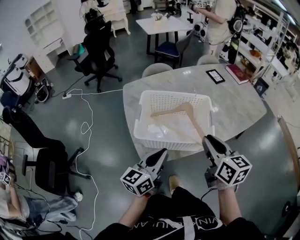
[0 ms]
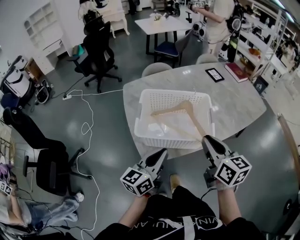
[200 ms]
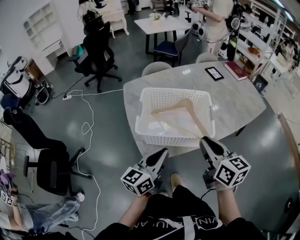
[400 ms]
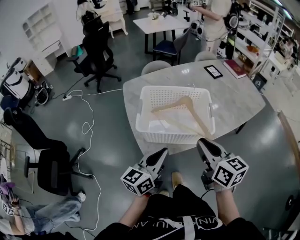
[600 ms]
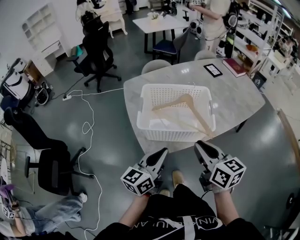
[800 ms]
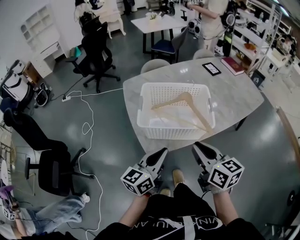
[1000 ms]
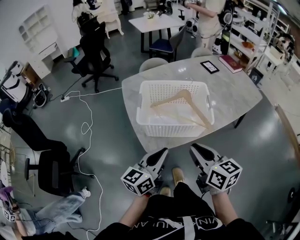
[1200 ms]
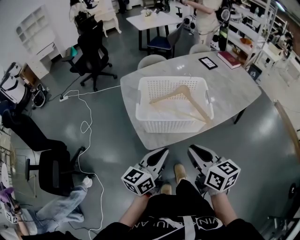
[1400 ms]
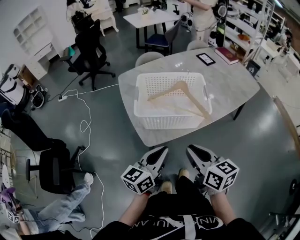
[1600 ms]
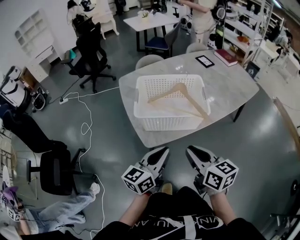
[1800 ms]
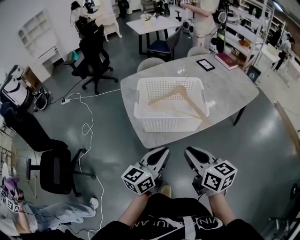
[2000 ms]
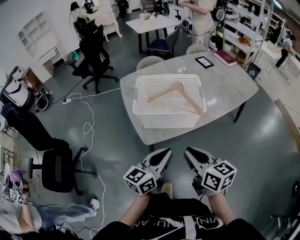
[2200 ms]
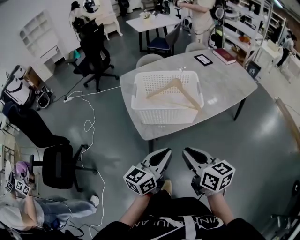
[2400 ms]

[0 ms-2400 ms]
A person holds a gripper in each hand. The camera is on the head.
0 ms to 1200 ms: The left gripper heads backward, covering approximately 5 cm. Meanwhile the right gripper goes roughly 10 cm backward and to the left.
1200 ms to 2400 ms: The right gripper moves backward, some 10 cm; the left gripper goes approximately 10 cm backward and to the right.

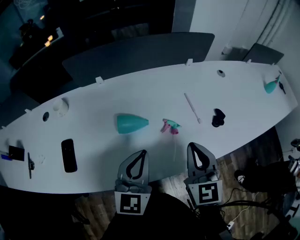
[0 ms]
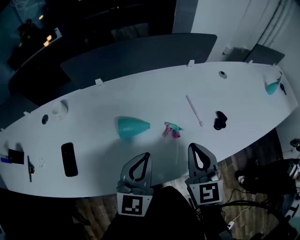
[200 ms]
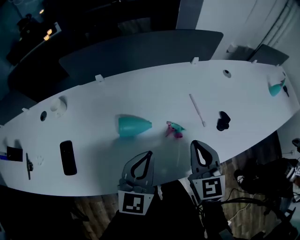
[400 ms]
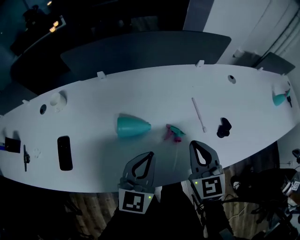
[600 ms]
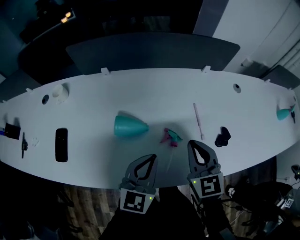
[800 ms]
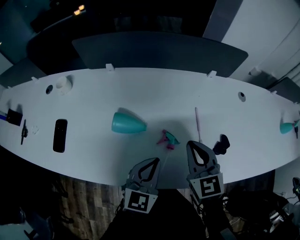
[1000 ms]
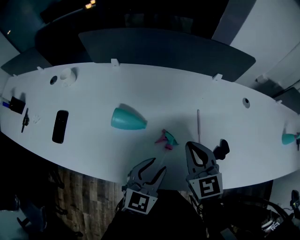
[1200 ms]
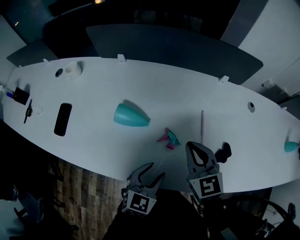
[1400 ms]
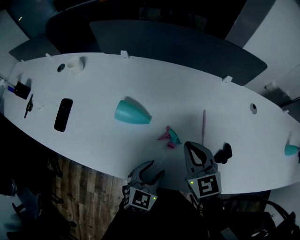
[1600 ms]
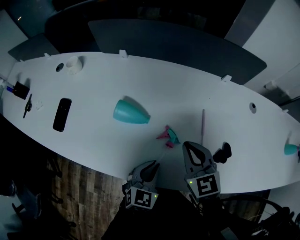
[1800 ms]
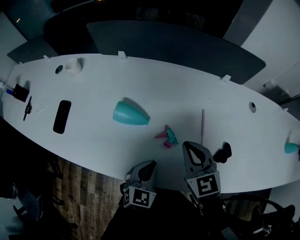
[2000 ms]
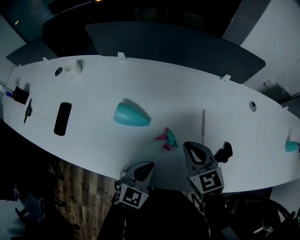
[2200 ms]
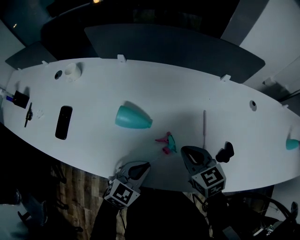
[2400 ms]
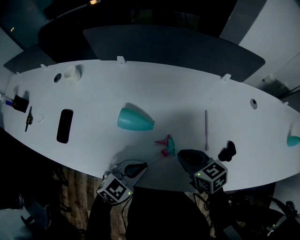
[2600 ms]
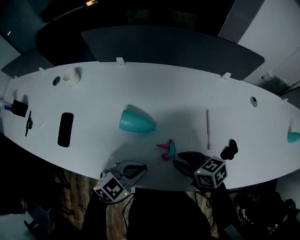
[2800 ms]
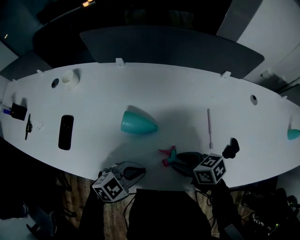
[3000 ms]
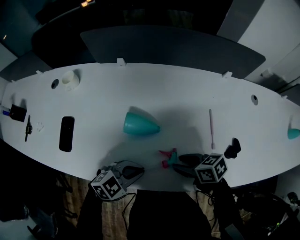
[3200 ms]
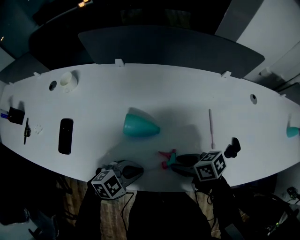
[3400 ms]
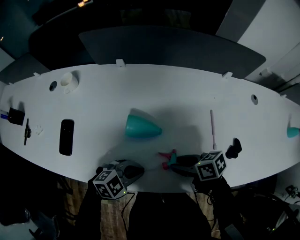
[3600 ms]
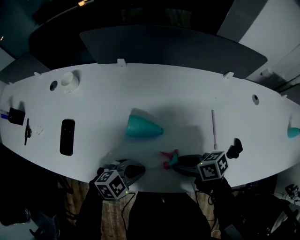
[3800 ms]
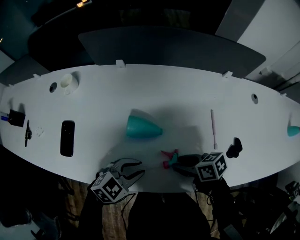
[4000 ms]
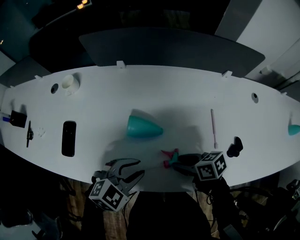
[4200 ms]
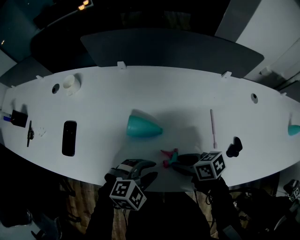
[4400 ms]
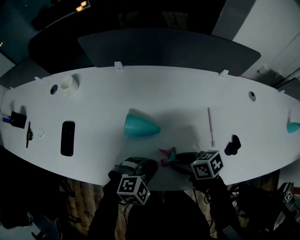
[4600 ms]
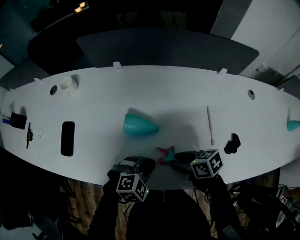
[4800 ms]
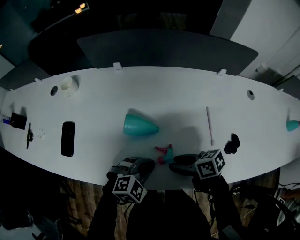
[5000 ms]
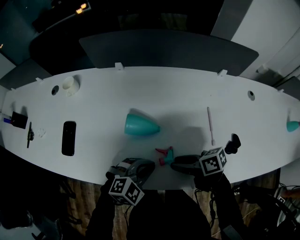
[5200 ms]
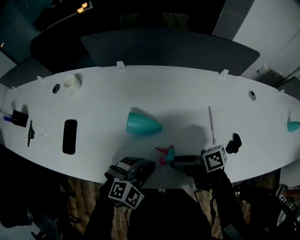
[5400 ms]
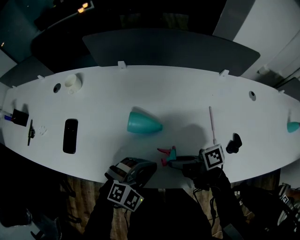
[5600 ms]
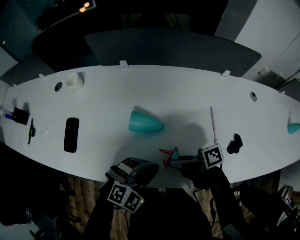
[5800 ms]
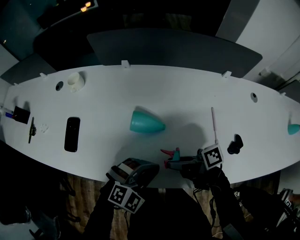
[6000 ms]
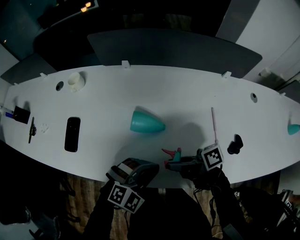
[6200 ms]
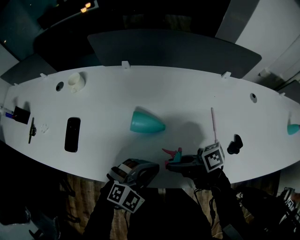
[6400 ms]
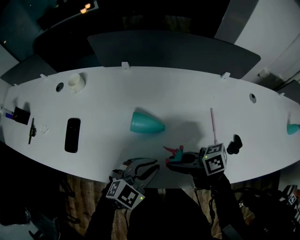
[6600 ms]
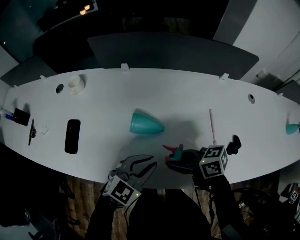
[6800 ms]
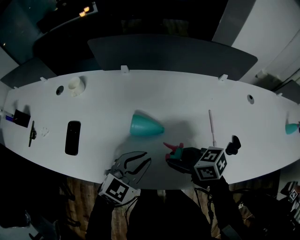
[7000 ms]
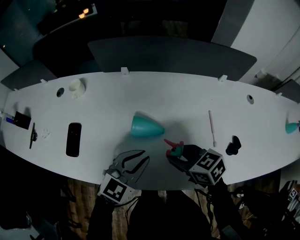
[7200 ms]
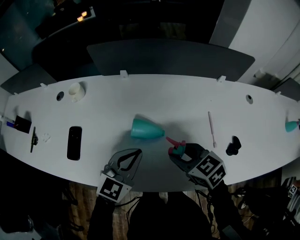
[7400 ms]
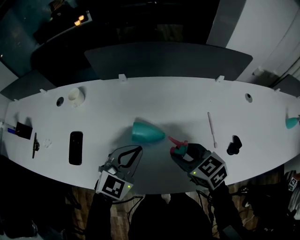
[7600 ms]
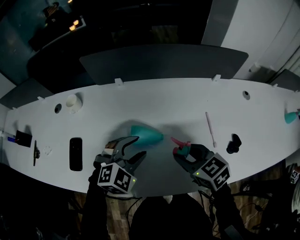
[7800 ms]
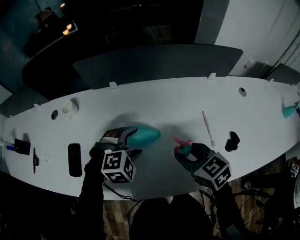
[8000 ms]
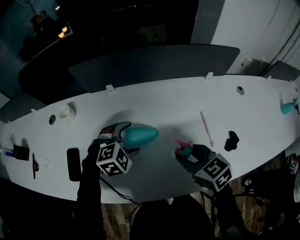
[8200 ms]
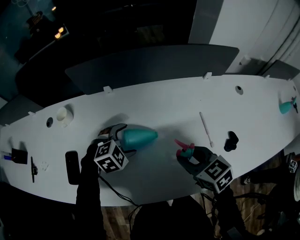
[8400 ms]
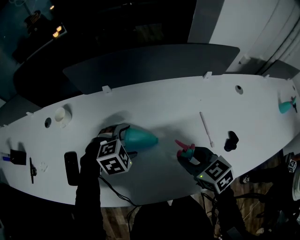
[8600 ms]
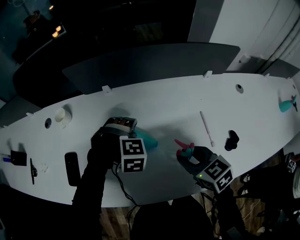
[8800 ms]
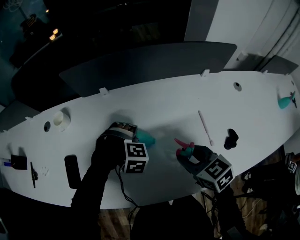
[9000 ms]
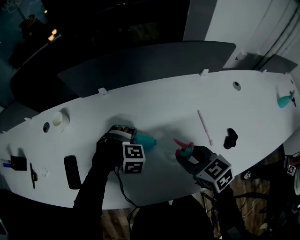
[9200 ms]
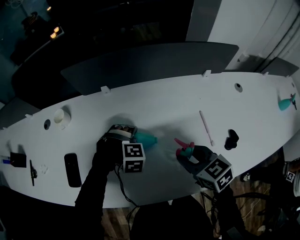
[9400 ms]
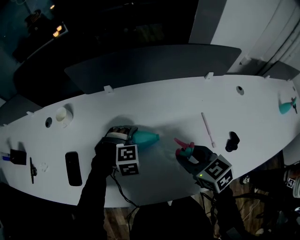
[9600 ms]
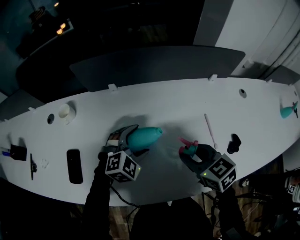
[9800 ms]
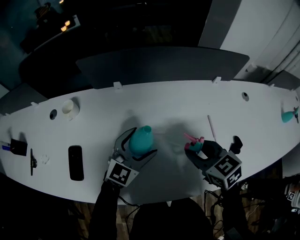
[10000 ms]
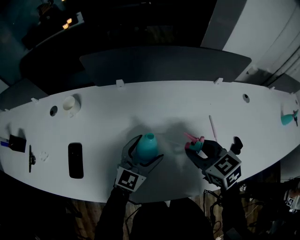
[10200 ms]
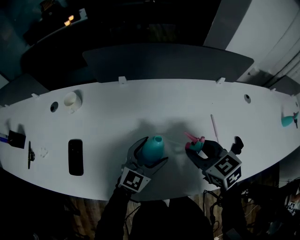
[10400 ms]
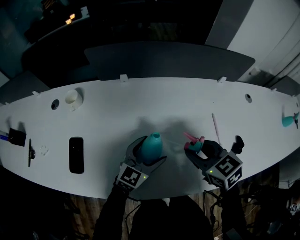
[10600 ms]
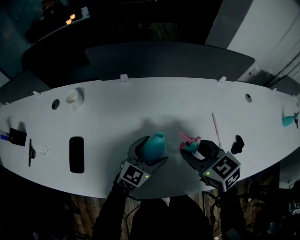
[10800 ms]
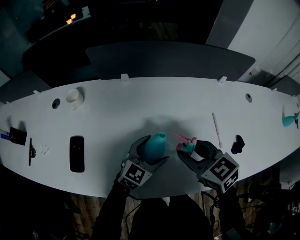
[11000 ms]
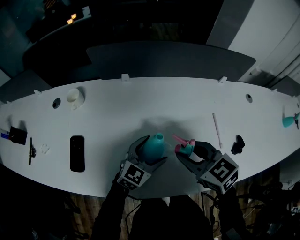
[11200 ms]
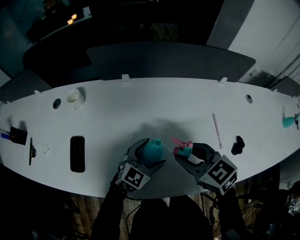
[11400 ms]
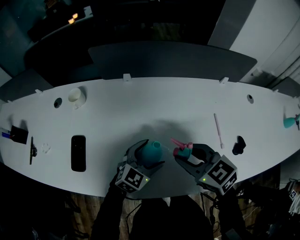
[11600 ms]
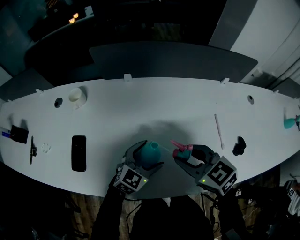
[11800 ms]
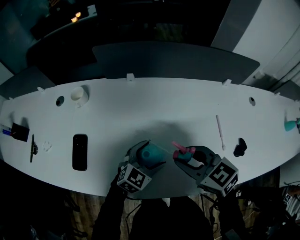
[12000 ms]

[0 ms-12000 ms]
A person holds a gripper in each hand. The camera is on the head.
0 ms to 1600 ms: The right gripper goes approximately 15 cm forward and downward, and changes its angle by approximately 40 degrees. The left gripper goes about 20 cm downward and to the right, swivels roughly 30 degrees, and opens.
1600 ms to 3000 ms: The left gripper changes place by some 10 cm, rotates some 40 degrees, and closes; the right gripper goes about 10 cm downward, swivels approximately 50 degrees, and opens its fingers.
4400 ms to 6000 ms: The right gripper goes roughly 5 cm upward, and angles its fingers upward, by approximately 30 degrees.
6000 ms to 7600 ms: The left gripper moves some 15 cm, and changes its angle by roughly 30 degrees. Meanwhile the right gripper ends up about 5 cm from where it was, and turns by about 70 degrees.
7600 ms to 9000 ms: The left gripper shifts about 15 cm downward, tips its fingers downward by some 50 degrees, and opens up.
9000 ms to 10400 ms: The left gripper heads upward, covering about 5 cm, and angles its fingers upward, by approximately 60 degrees.
10400 ms to 12000 ms: The right gripper moves to the left, some 5 cm. The left gripper moves approximately 5 cm.

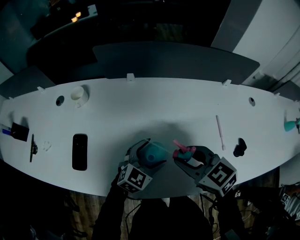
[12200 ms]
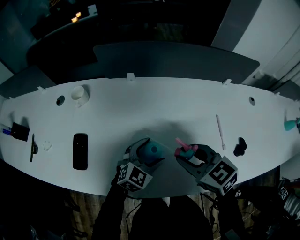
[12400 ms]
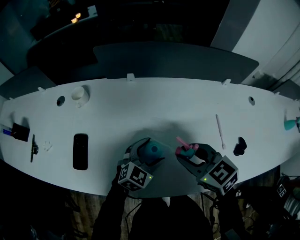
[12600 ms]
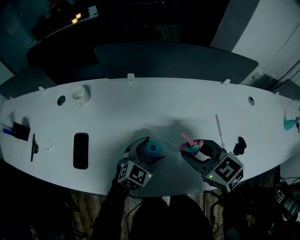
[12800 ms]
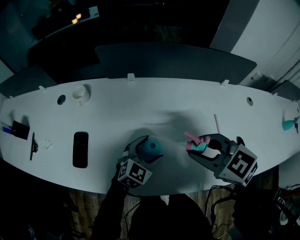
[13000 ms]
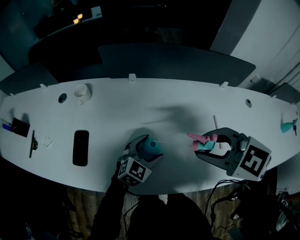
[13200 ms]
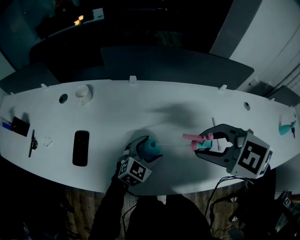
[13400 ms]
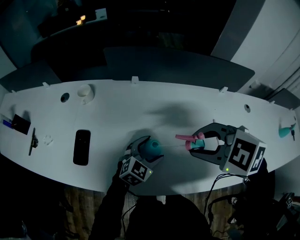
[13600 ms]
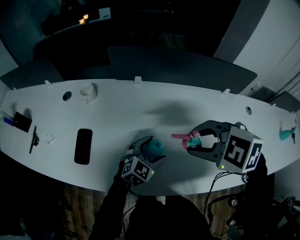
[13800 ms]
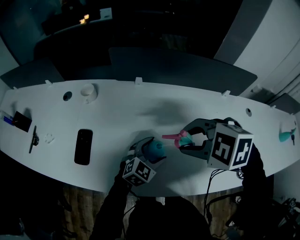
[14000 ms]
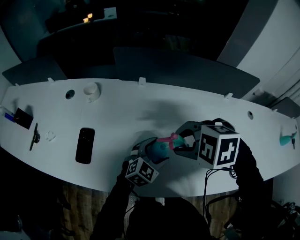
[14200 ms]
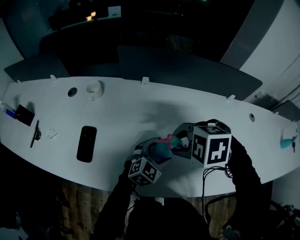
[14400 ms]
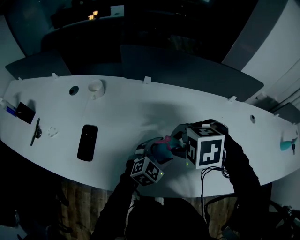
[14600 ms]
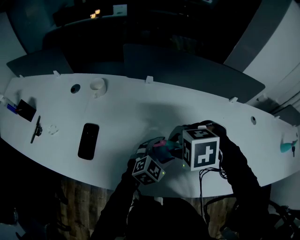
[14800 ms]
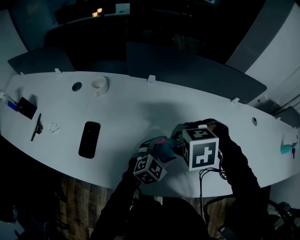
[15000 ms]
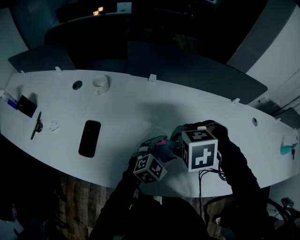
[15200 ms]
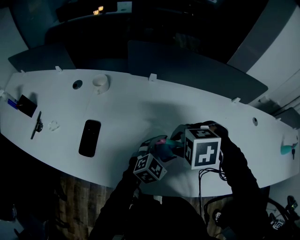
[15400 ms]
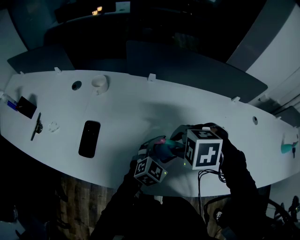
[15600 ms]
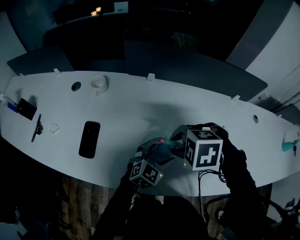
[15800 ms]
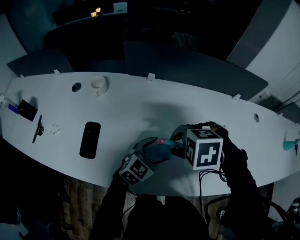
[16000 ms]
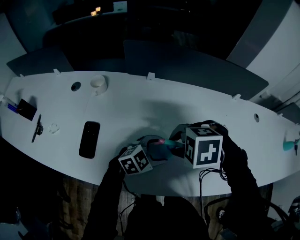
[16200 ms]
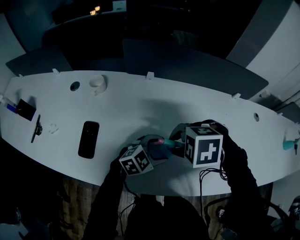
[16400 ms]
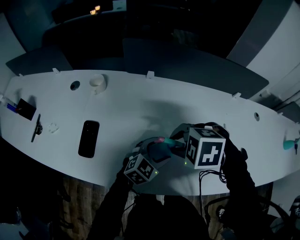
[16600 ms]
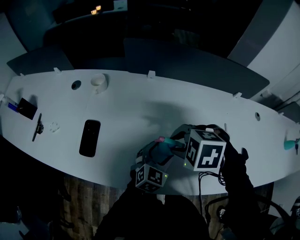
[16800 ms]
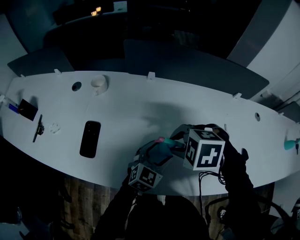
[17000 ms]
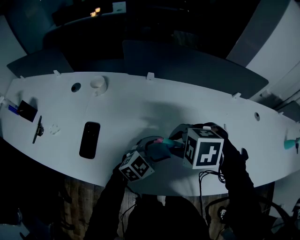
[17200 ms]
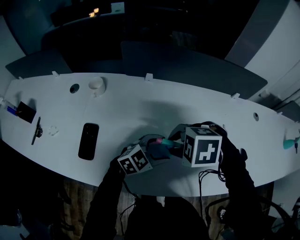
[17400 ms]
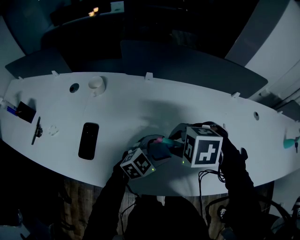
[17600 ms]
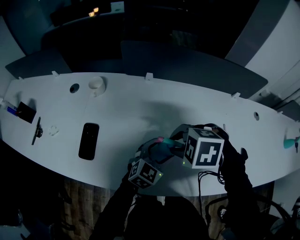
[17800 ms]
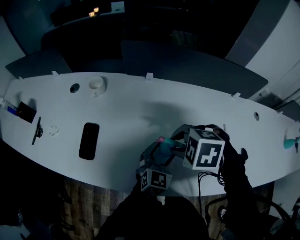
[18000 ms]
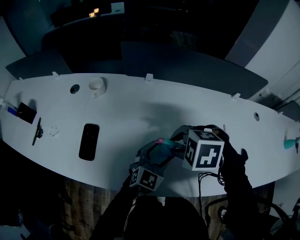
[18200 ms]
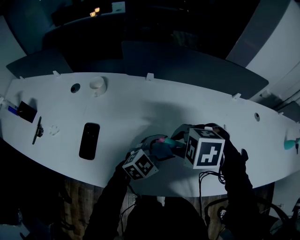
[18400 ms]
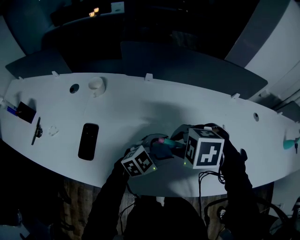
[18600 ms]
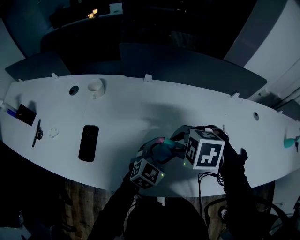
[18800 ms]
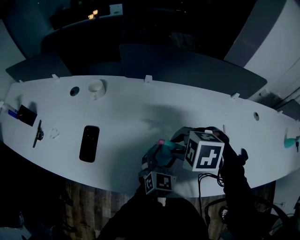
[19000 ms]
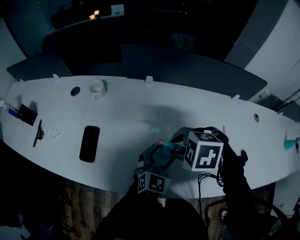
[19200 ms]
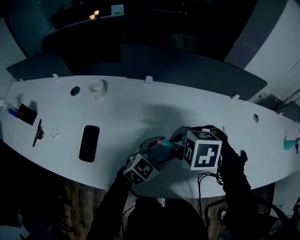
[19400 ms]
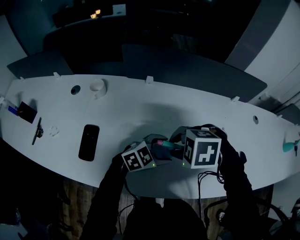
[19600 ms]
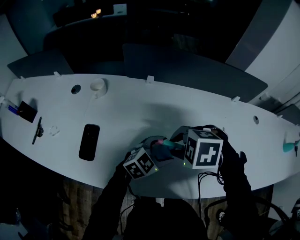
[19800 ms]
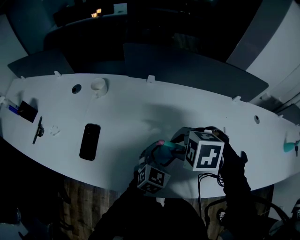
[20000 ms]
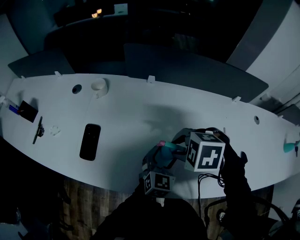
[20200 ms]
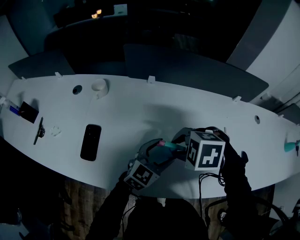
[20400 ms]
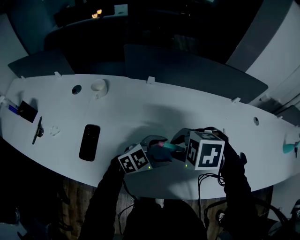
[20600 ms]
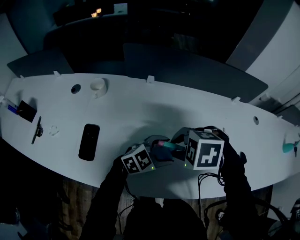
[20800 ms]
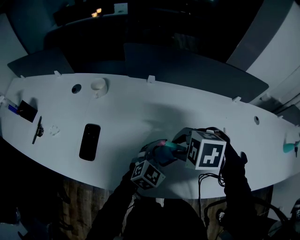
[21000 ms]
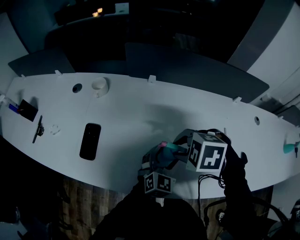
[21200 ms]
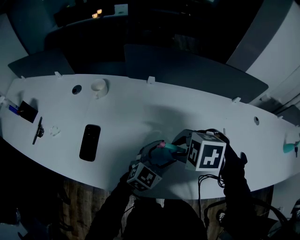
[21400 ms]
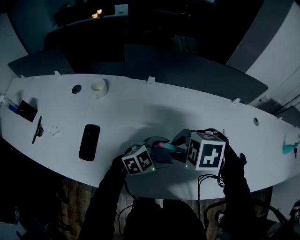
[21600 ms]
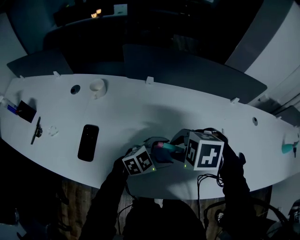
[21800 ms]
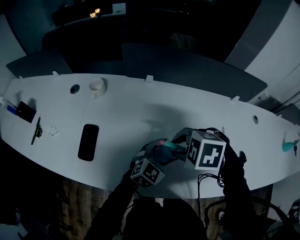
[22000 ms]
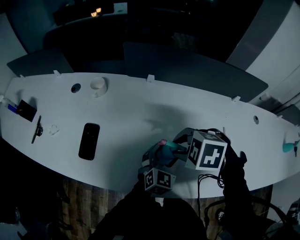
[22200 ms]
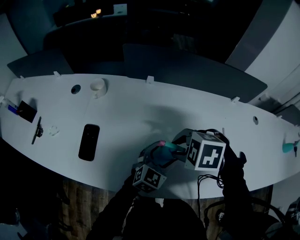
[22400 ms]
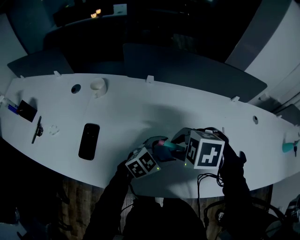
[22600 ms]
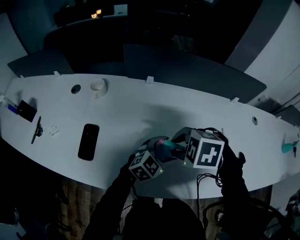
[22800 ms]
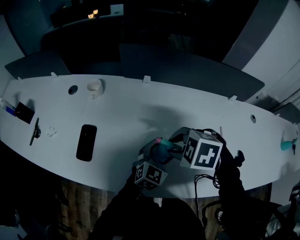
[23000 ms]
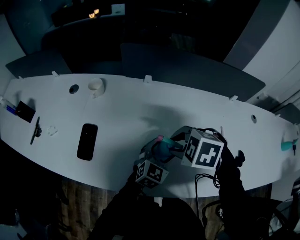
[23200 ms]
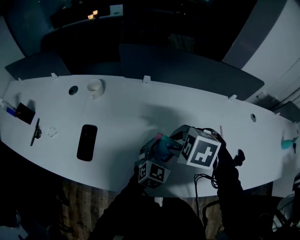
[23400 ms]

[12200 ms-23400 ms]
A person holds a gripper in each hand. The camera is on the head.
12200 ms to 13800 ms: The right gripper goes roughly 10 cm upward, and swivels about 40 degrees.
13800 ms to 15400 ms: The right gripper travels downward by roughly 10 cm, and swivels roughly 20 degrees.
15400 ms to 17000 ms: There are only small adjustments of the grippers.
17000 ms to 18600 ms: The left gripper changes its angle by approximately 30 degrees.
18600 ms to 20200 ms: The left gripper swivels approximately 40 degrees.
20200 ms to 21800 ms: The left gripper rotates roughly 50 degrees.
21800 ms to 23400 ms: The left gripper changes its angle by some 40 degrees.
